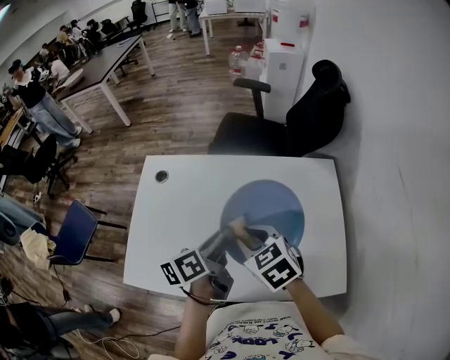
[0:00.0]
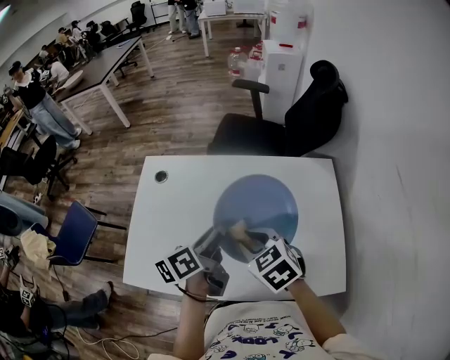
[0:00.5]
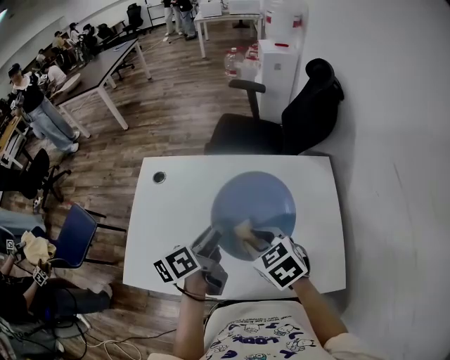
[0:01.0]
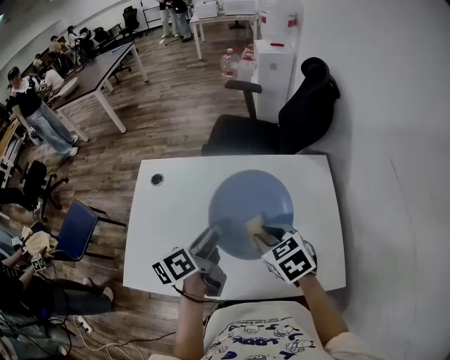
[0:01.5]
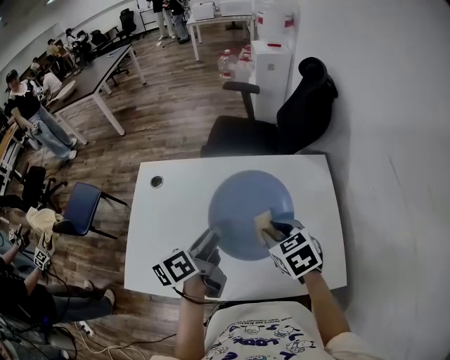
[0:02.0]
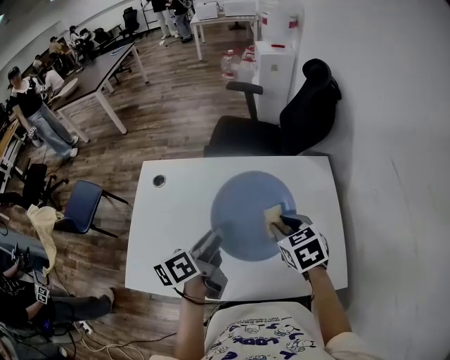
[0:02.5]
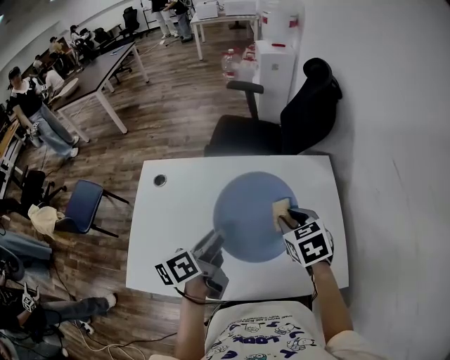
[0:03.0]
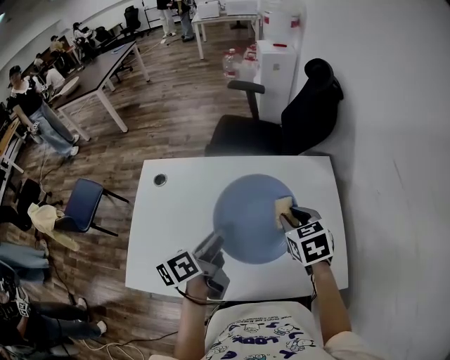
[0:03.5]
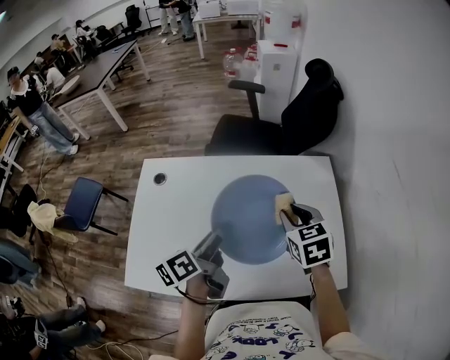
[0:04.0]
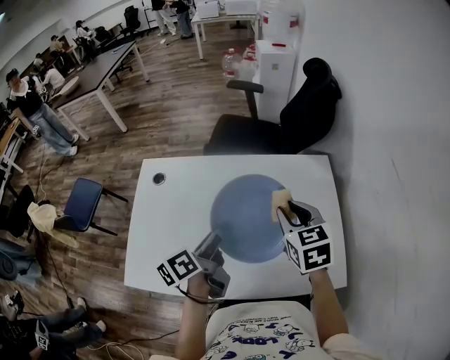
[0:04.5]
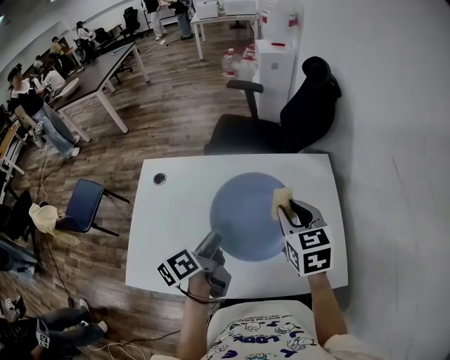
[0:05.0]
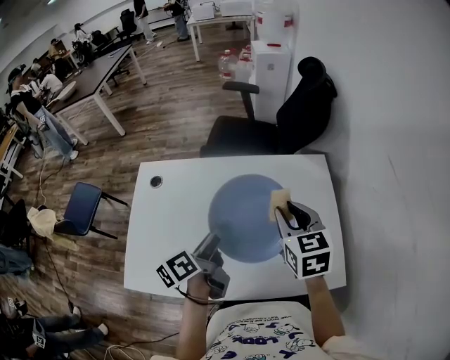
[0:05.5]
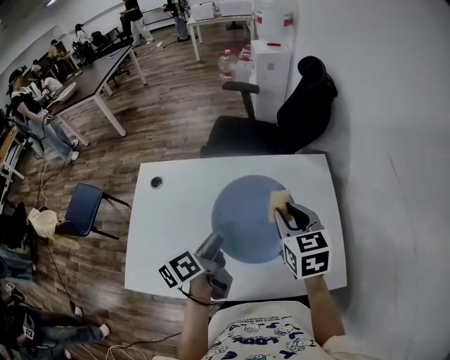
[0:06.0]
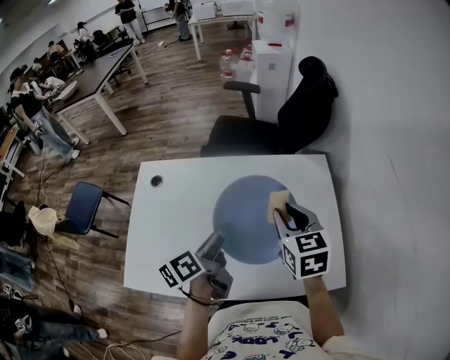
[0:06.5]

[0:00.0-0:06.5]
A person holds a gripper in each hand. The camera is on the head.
0:00.0 to 0:02.0: The right gripper goes roughly 10 cm to the right.
0:02.0 to 0:04.5: The right gripper shifts some 5 cm upward.
0:04.5 to 0:06.5: The grippers move only a little.

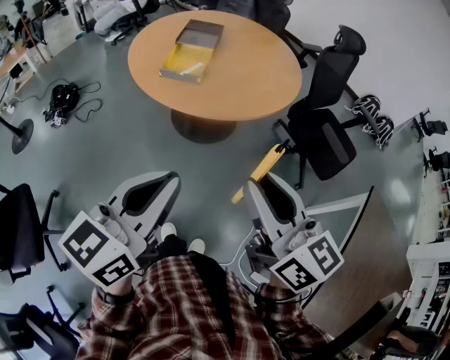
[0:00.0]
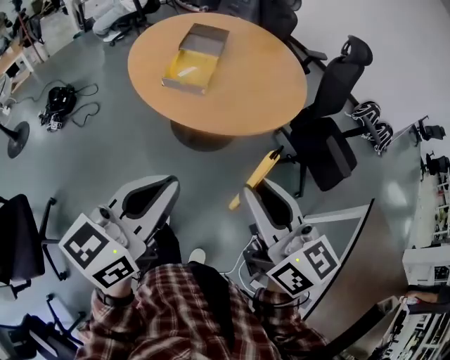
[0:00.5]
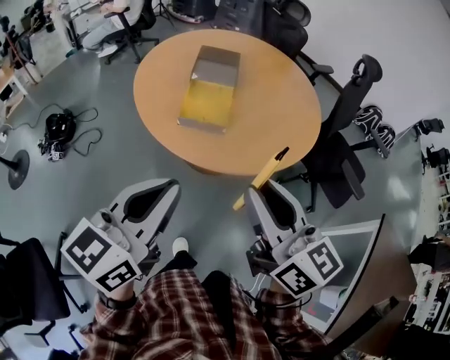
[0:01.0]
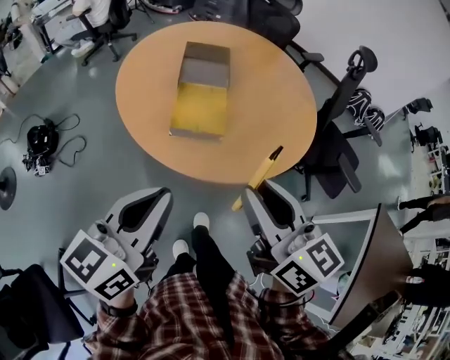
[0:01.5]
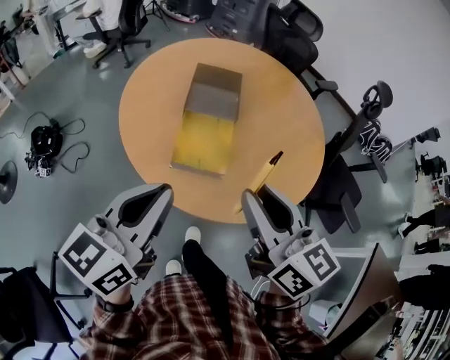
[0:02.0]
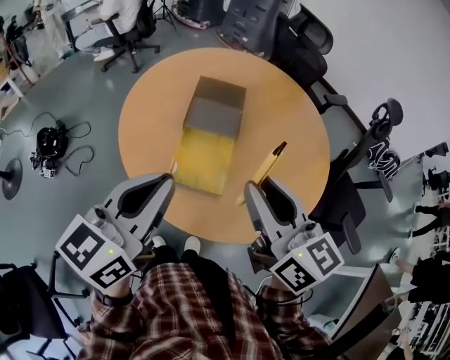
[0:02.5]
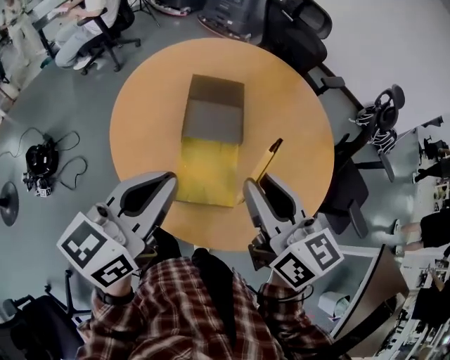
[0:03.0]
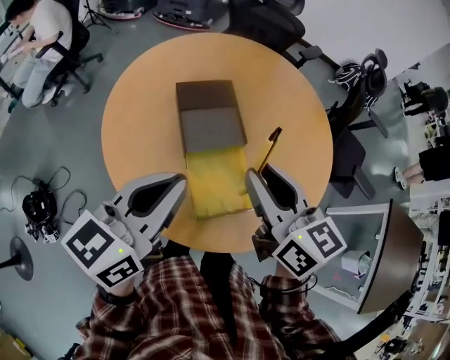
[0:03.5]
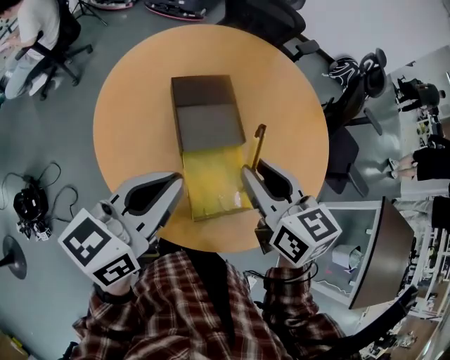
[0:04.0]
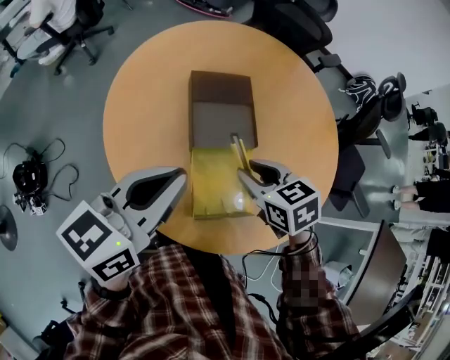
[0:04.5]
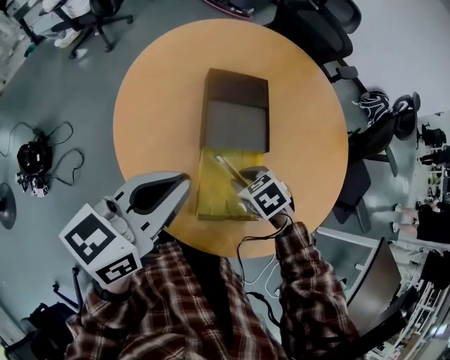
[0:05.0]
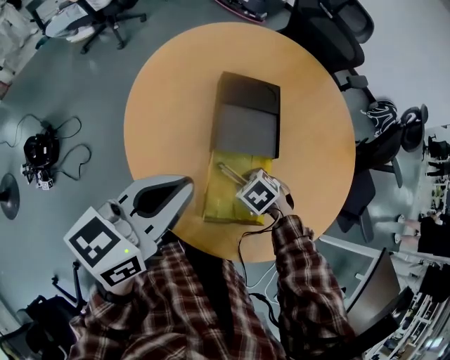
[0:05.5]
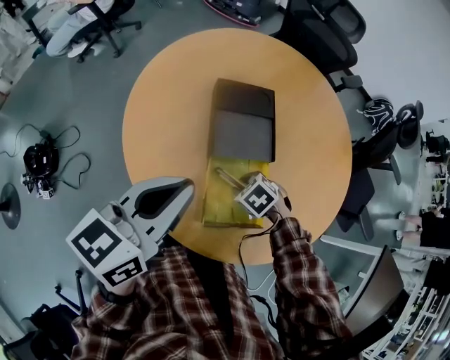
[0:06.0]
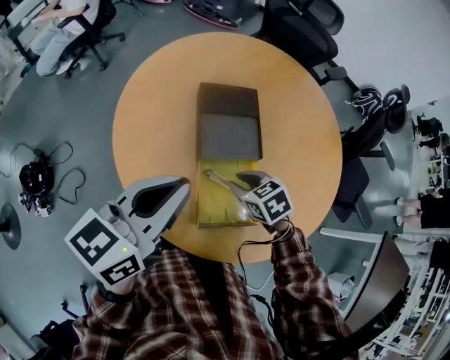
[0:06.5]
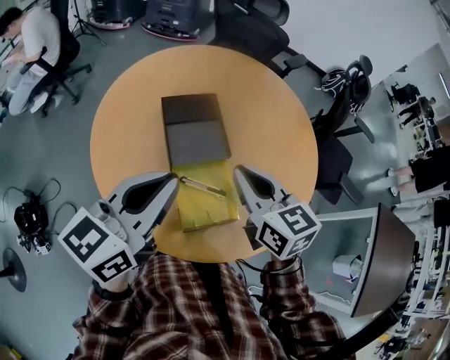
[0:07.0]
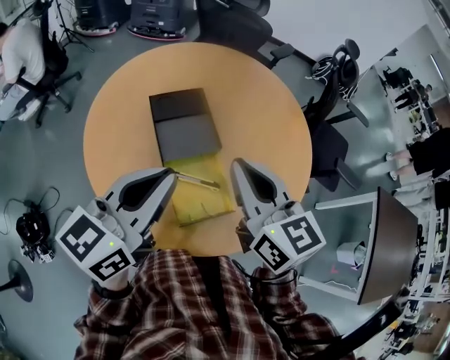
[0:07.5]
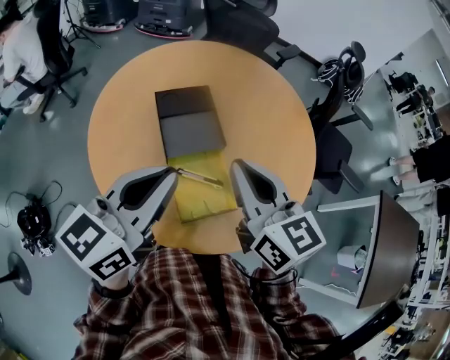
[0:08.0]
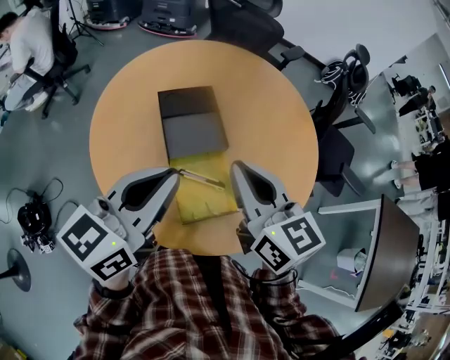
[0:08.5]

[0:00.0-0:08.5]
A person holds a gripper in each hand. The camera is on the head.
0:00.0 to 0:02.0: The pair of grippers is taken forward and to the left, approximately 50 cm.
0:02.0 to 0:04.0: The right gripper shifts by roughly 25 cm, and swivels approximately 30 degrees. The left gripper moves approximately 25 cm, and turns by about 30 degrees.
0:04.0 to 0:06.5: The right gripper moves downward, about 20 cm, and tilts its fingers about 30 degrees downward.
0:06.5 to 0:08.5: The left gripper moves to the right, some 5 cm, while the right gripper moves upward, approximately 25 cm, tips its fingers upward by approximately 50 degrees, and closes its fingers.

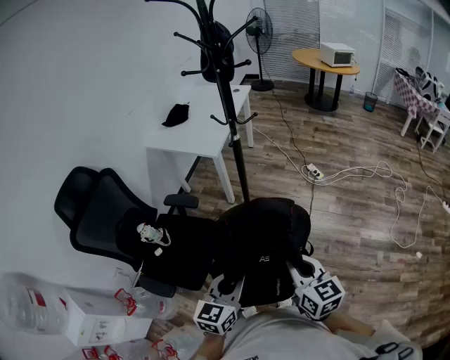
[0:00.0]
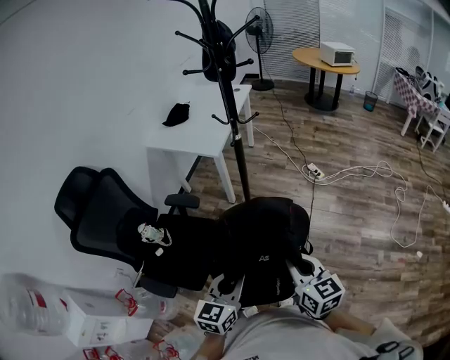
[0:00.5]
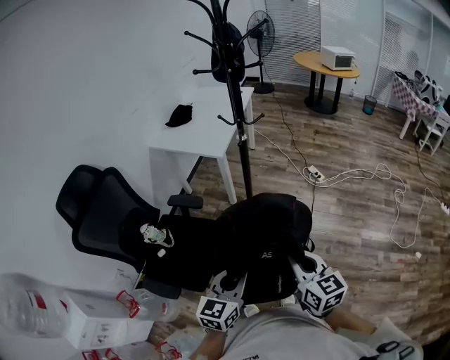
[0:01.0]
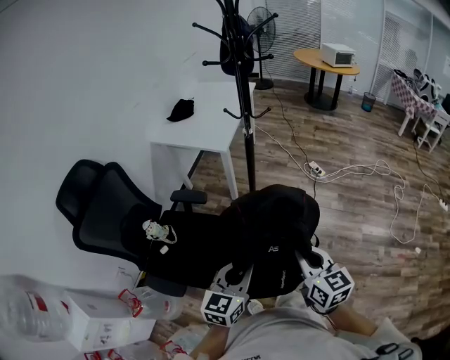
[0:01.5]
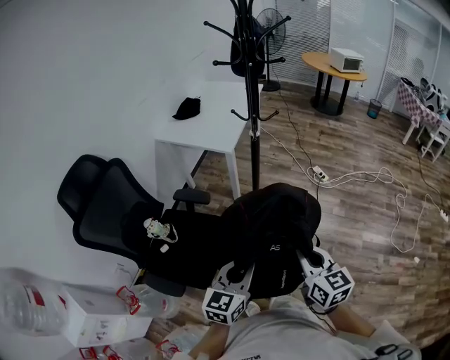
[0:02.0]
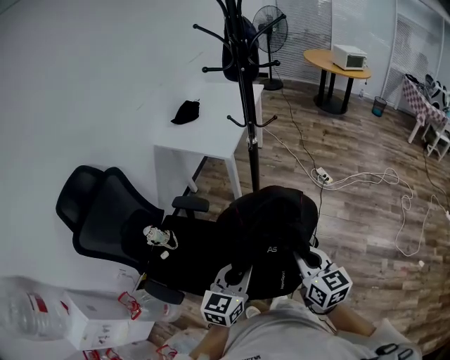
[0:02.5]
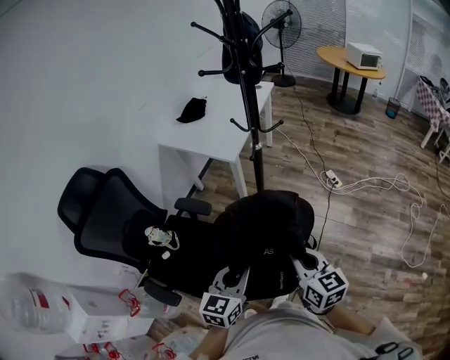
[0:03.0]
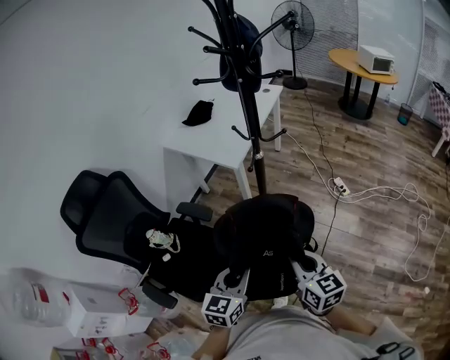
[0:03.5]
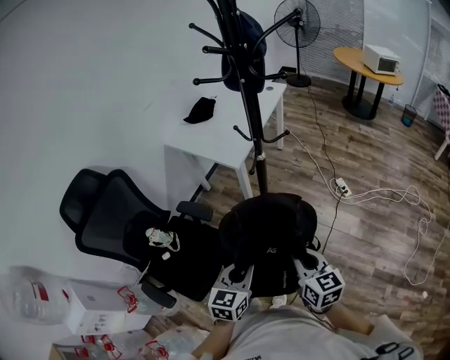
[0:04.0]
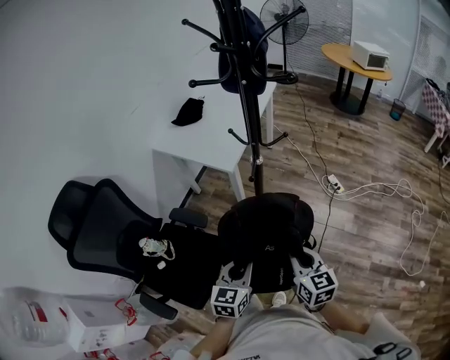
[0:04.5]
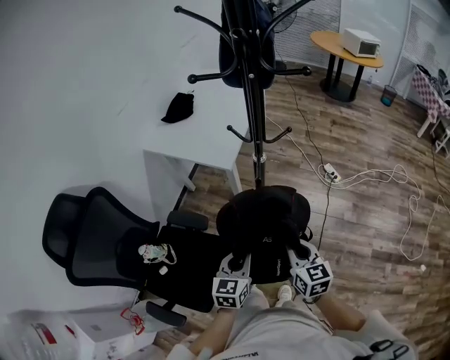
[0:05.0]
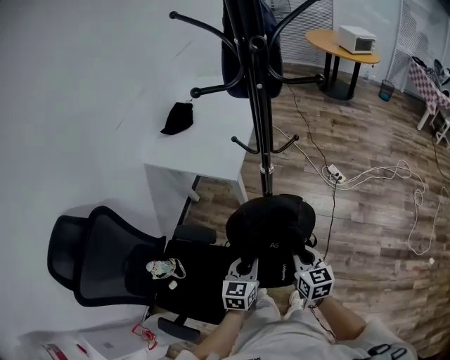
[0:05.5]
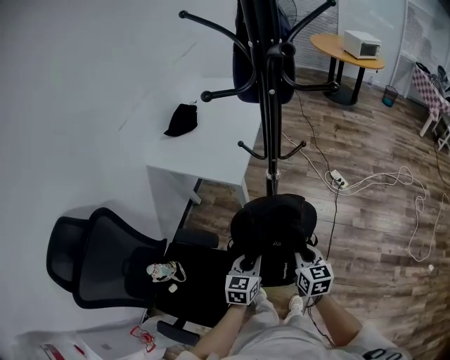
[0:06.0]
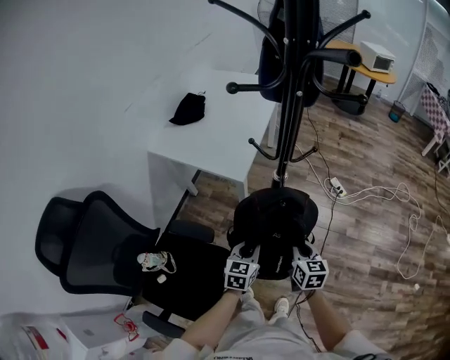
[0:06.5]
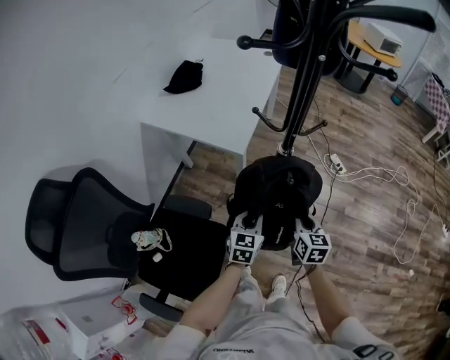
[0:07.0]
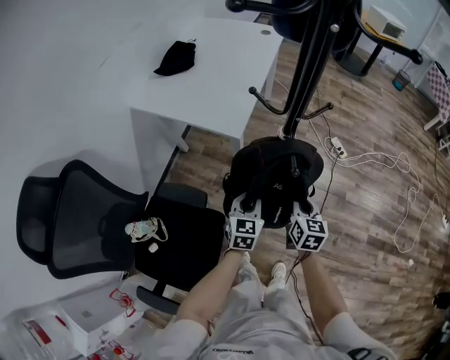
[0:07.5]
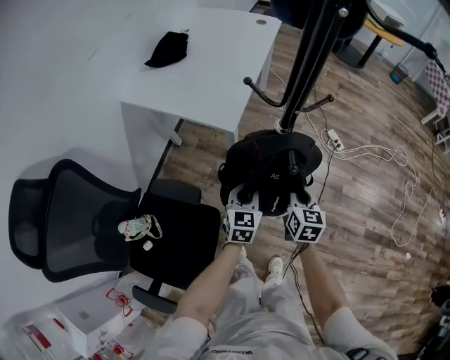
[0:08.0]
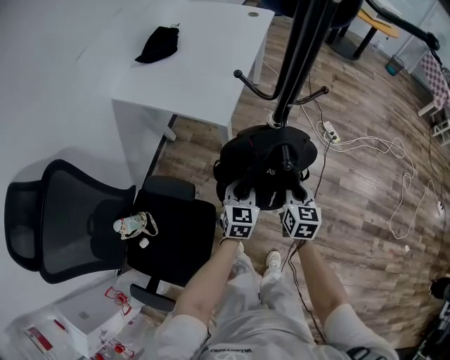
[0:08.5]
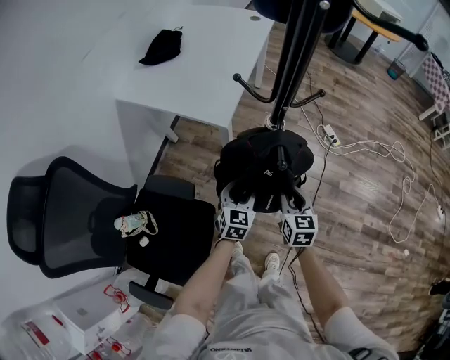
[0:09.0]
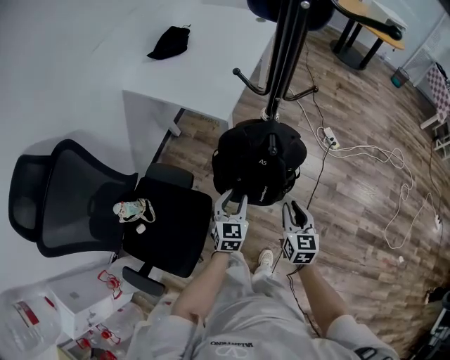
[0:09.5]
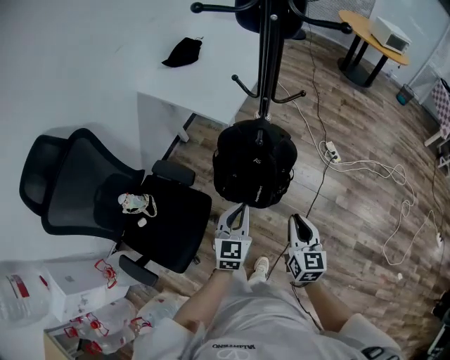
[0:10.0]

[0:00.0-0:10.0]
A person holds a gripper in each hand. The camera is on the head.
0:00.0 to 0:02.0: Both grippers travel together to the left, some 5 cm.
0:02.0 to 0:04.0: Both grippers move forward and to the right, approximately 20 cm.
0:04.0 to 0:06.0: The two grippers go some 20 cm forward, downward and to the left. The right gripper changes its angle by approximately 20 degrees.
0:06.0 to 0:08.0: Both grippers travel together forward and downward, some 15 cm.
0:08.0 to 0:10.0: The right gripper goes approximately 20 cm backward, to the right and upward; the left gripper travels backward and upward by some 20 cm, and opens, then closes once more.

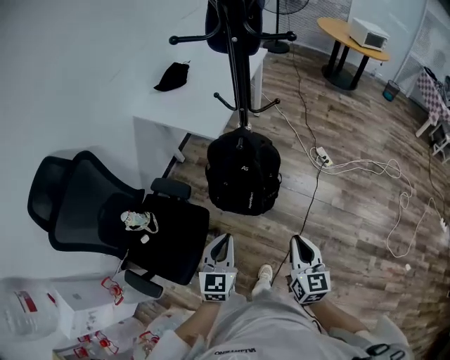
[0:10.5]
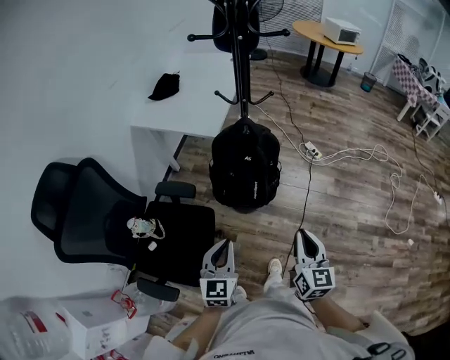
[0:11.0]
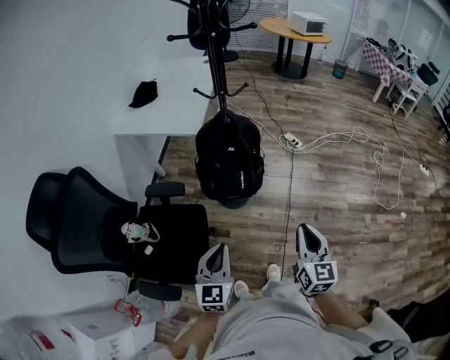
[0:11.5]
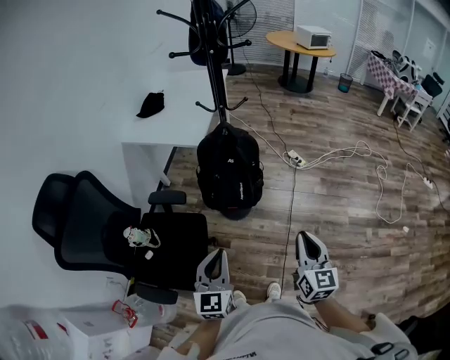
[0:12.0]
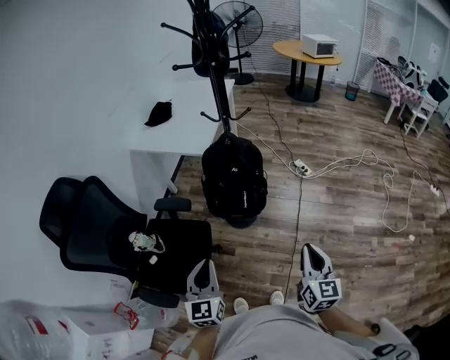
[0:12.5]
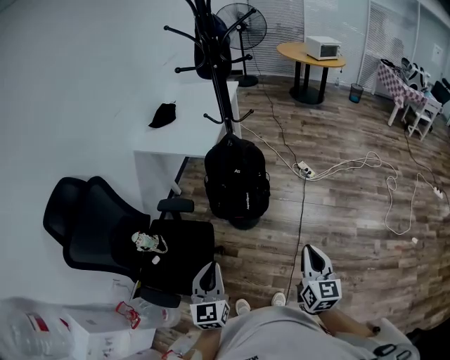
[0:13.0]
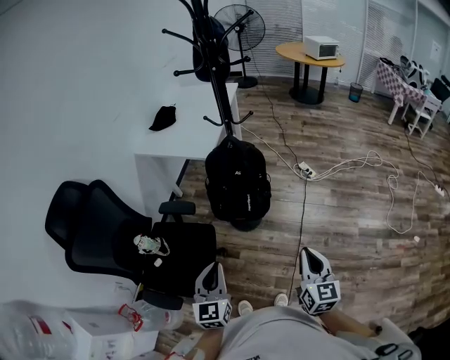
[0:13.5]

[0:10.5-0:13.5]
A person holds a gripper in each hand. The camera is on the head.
0:10.5 to 0:12.0: Both grippers travel together backward, about 20 cm.
0:12.0 to 0:13.5: The grippers move only a little.
